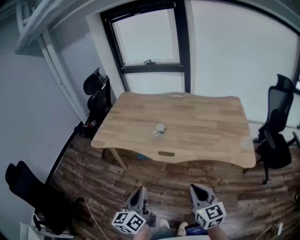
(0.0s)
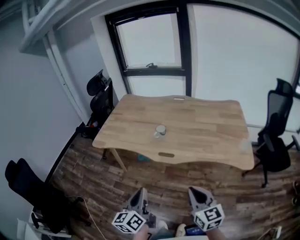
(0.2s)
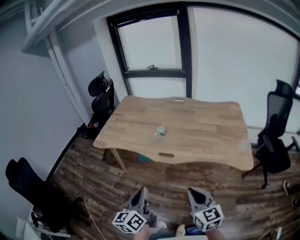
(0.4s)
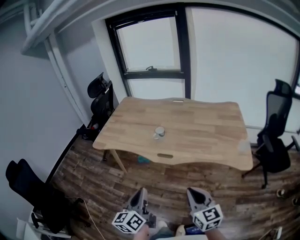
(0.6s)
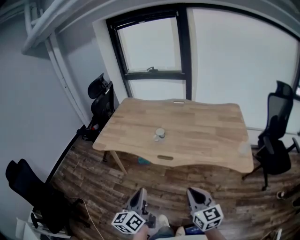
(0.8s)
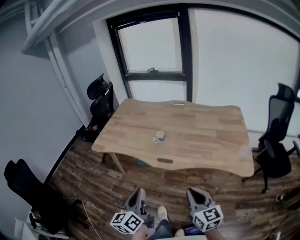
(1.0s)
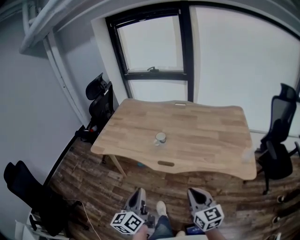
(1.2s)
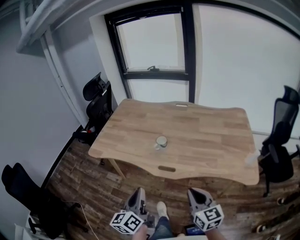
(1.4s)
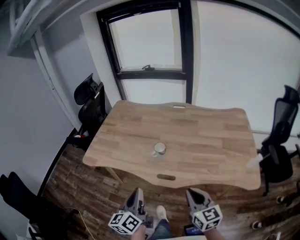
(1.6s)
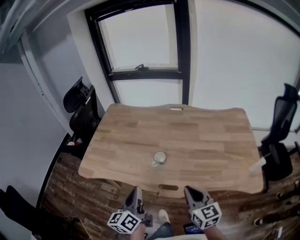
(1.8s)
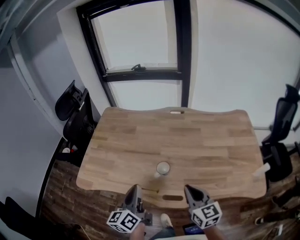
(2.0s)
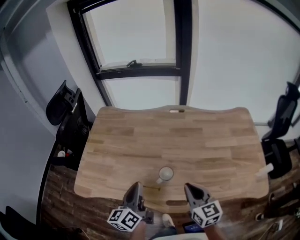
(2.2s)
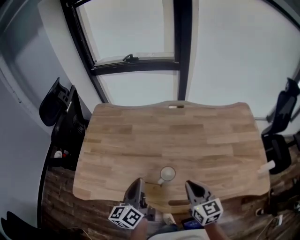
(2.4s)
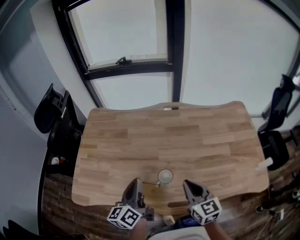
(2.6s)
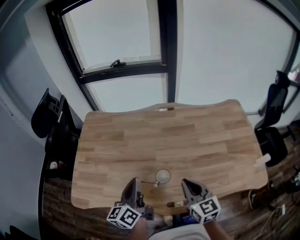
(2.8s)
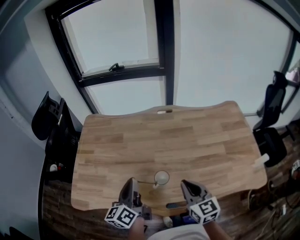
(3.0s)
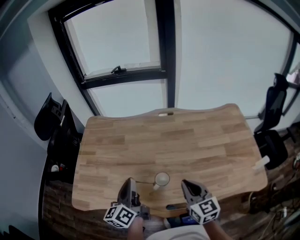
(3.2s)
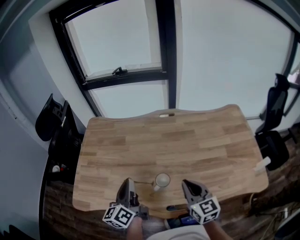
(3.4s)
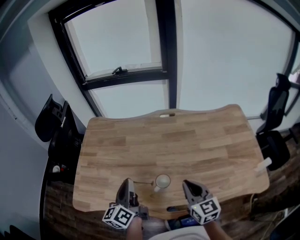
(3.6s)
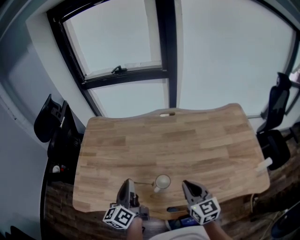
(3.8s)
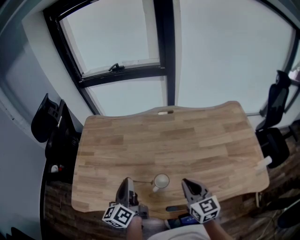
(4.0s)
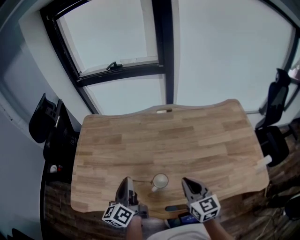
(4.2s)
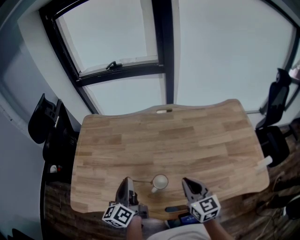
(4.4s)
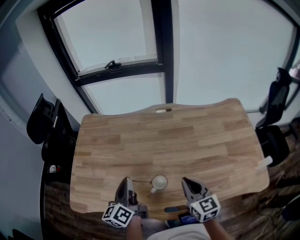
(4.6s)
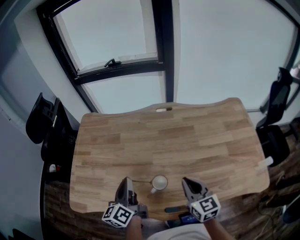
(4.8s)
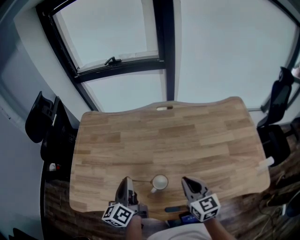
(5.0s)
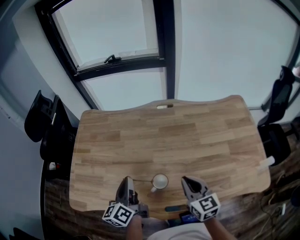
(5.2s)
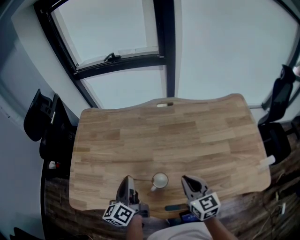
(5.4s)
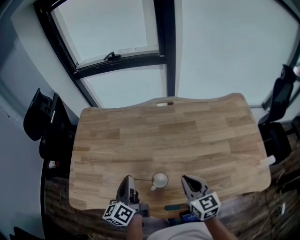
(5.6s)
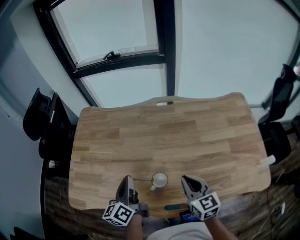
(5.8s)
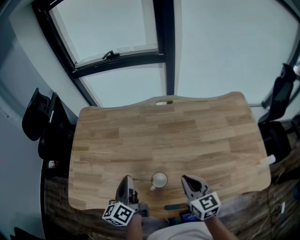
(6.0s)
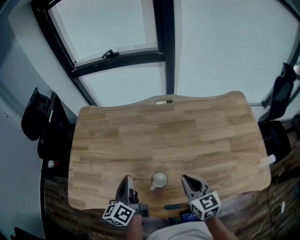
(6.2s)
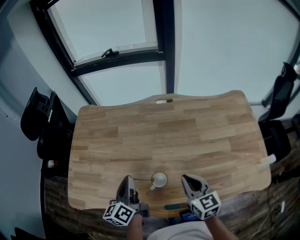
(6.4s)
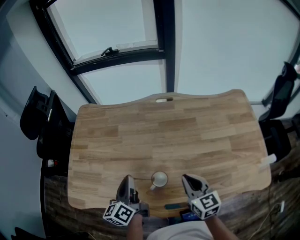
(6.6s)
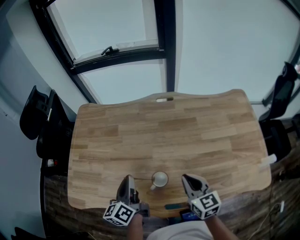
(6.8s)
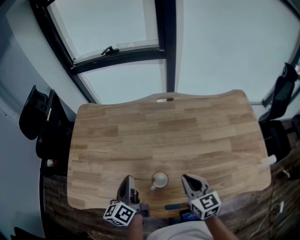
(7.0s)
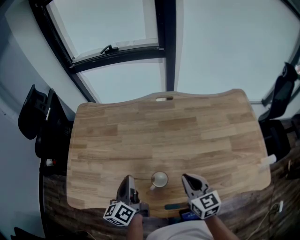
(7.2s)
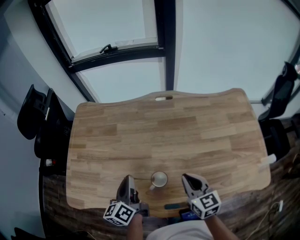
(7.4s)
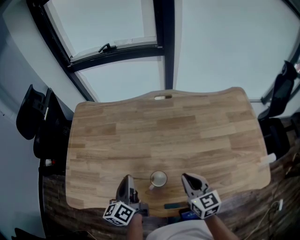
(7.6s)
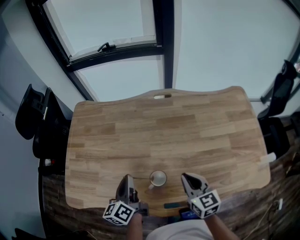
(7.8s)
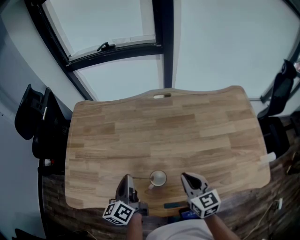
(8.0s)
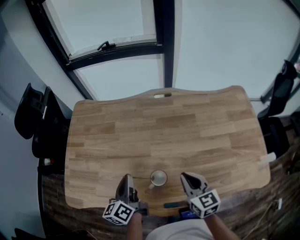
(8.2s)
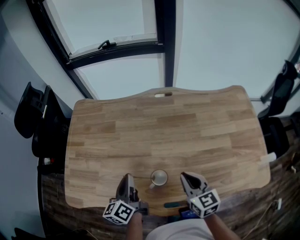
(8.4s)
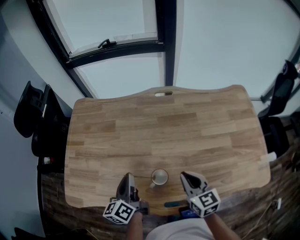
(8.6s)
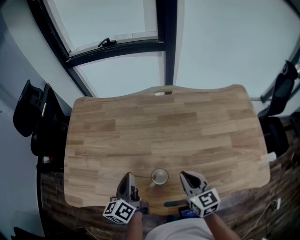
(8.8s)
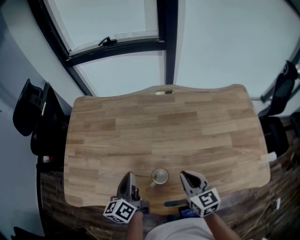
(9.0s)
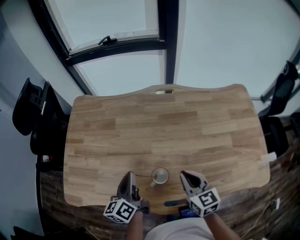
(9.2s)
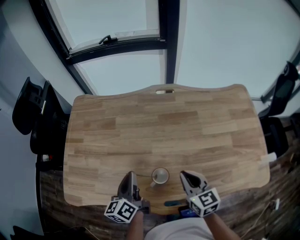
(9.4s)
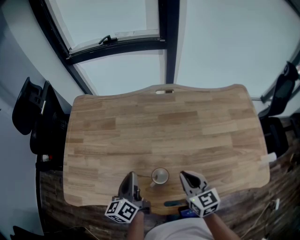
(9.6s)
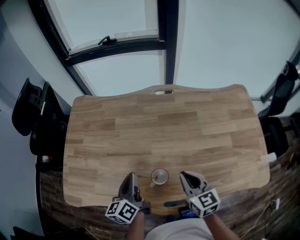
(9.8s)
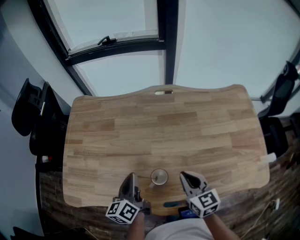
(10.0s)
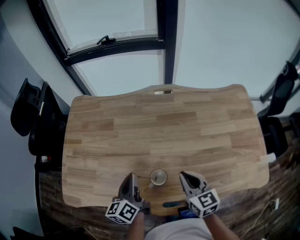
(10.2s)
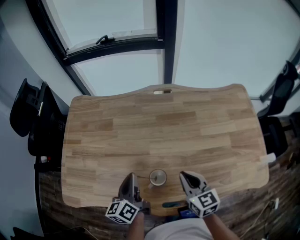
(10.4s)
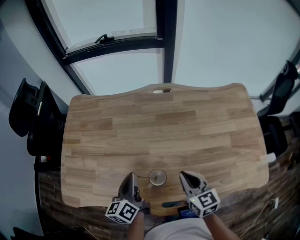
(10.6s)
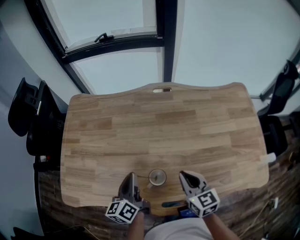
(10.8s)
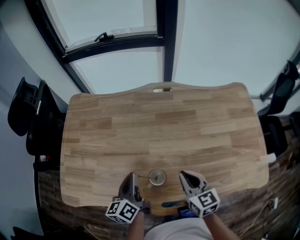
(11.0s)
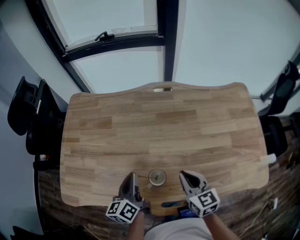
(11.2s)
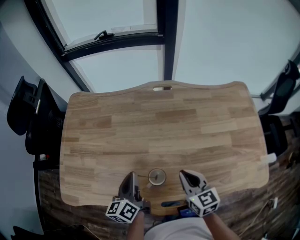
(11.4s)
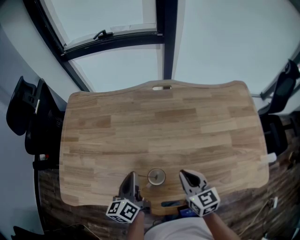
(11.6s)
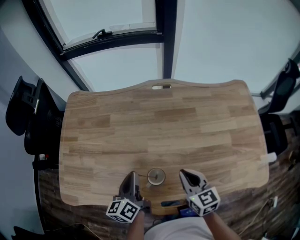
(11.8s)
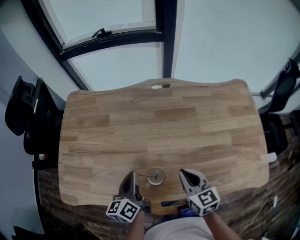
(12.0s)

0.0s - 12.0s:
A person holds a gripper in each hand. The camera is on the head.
0.0s - 1.6s: Both grippers move forward, some 15 cm.
1.6s - 3.0s: The grippers both shift forward by roughly 30 cm.
3.0s - 4.4s: The grippers stay close to where they were, moving slightly.
4.4s - 7.6s: The grippers stay close to where they were, moving slightly.
7.6s - 12.0s: The grippers move only a little.

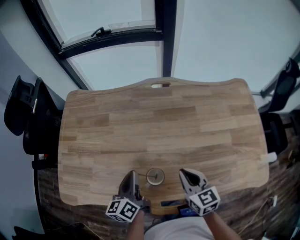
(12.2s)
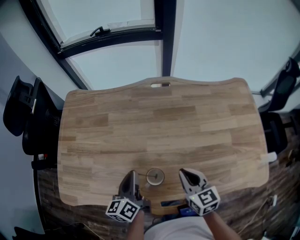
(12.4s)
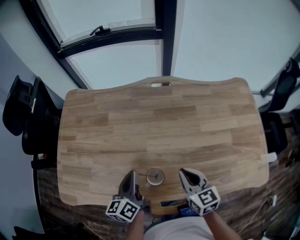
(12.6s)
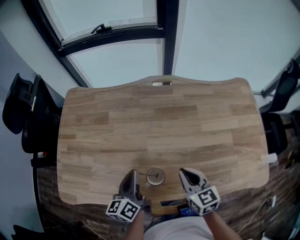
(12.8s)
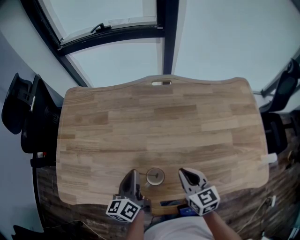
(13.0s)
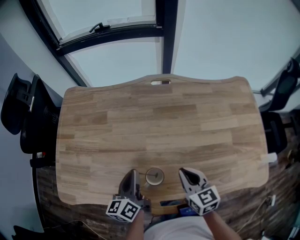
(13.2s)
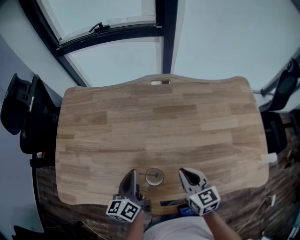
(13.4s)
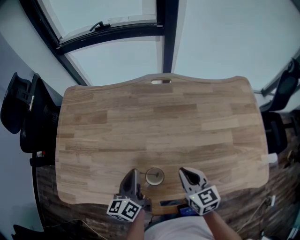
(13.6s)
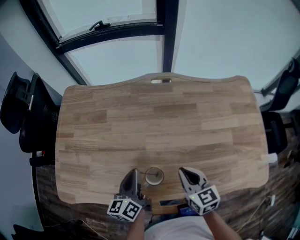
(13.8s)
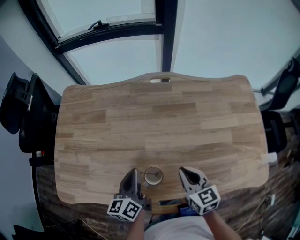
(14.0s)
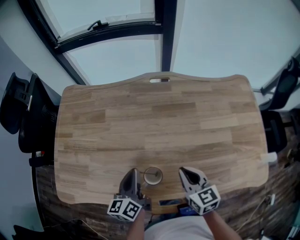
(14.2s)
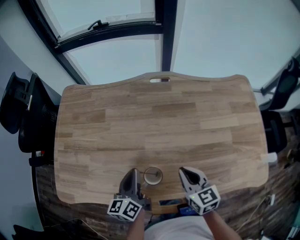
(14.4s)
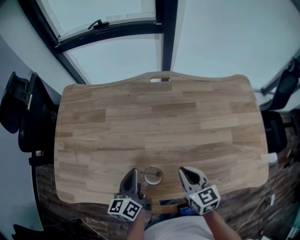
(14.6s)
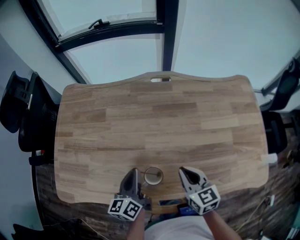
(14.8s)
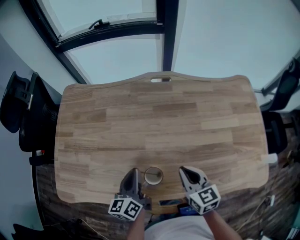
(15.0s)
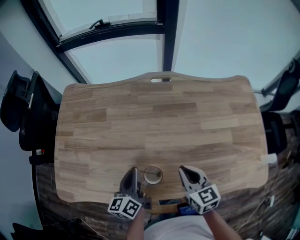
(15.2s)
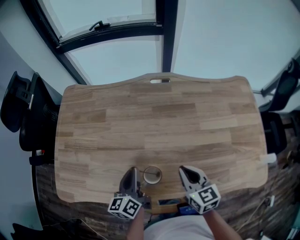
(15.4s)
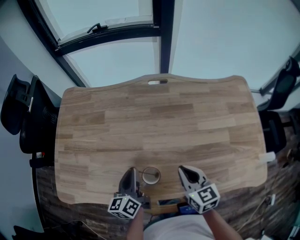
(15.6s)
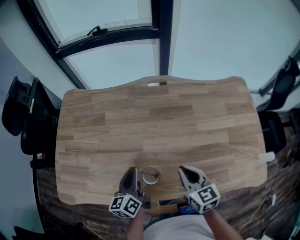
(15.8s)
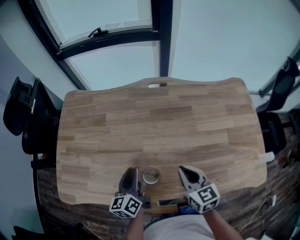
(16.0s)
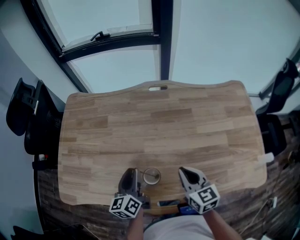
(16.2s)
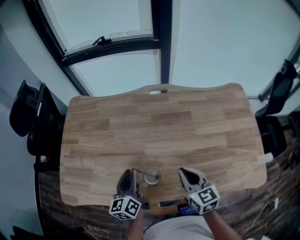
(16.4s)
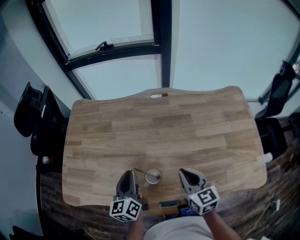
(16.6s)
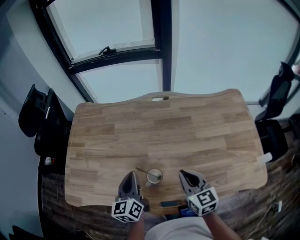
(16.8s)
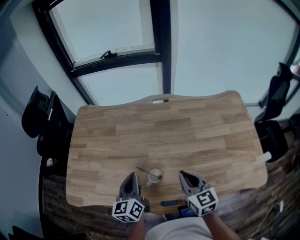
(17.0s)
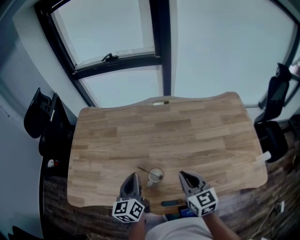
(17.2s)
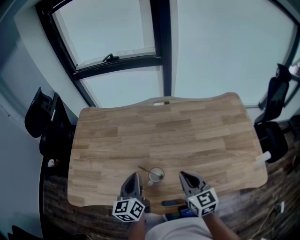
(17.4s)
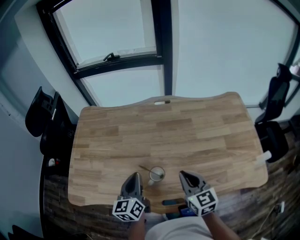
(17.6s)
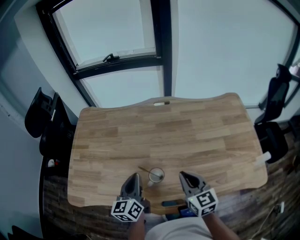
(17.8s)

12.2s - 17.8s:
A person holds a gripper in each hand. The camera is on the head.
12.2s - 13.6s: Neither gripper changes place.
13.6s - 15.0s: The two grippers keep their place.
15.0s - 16.4s: The left gripper opens.
16.4s - 17.8s: The right gripper moves roughly 5 cm; the left gripper shifts by approximately 5 cm, and closes up.

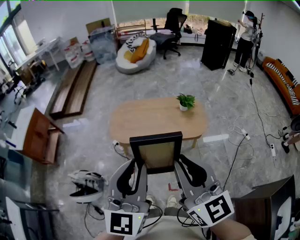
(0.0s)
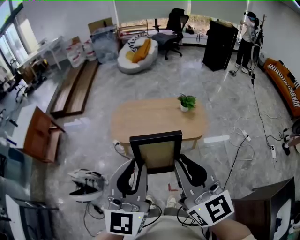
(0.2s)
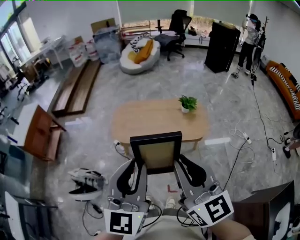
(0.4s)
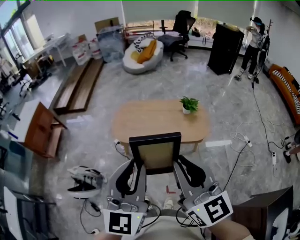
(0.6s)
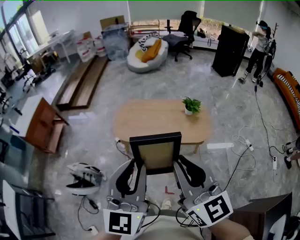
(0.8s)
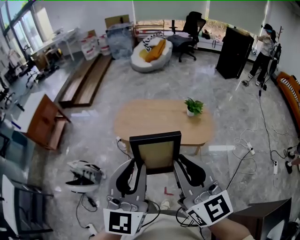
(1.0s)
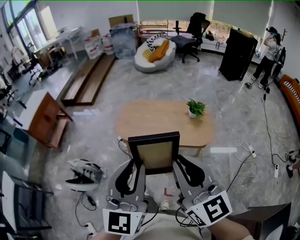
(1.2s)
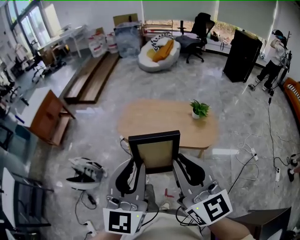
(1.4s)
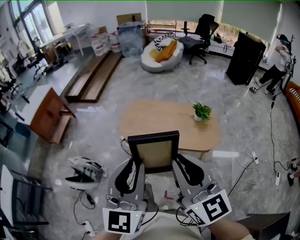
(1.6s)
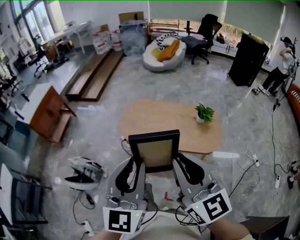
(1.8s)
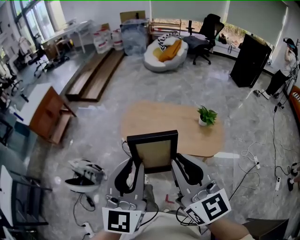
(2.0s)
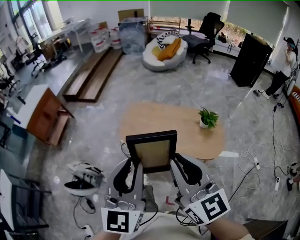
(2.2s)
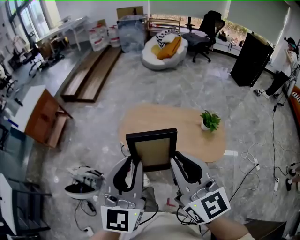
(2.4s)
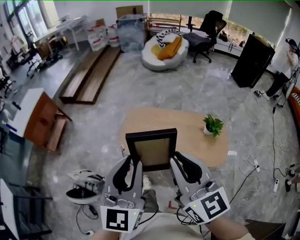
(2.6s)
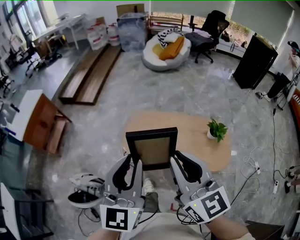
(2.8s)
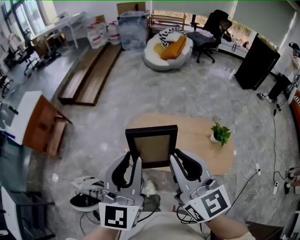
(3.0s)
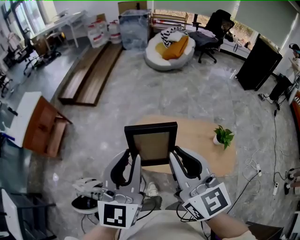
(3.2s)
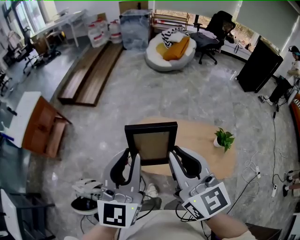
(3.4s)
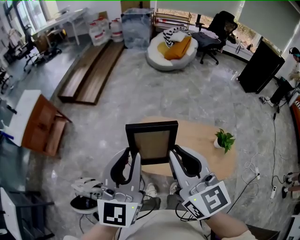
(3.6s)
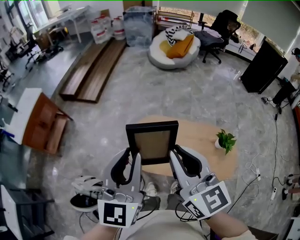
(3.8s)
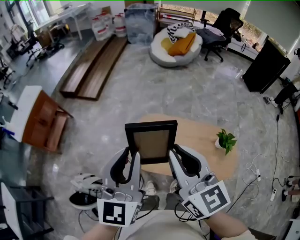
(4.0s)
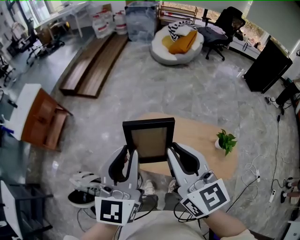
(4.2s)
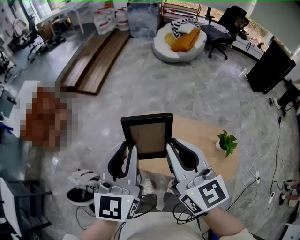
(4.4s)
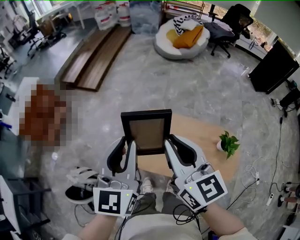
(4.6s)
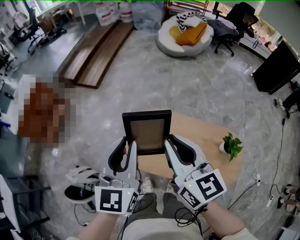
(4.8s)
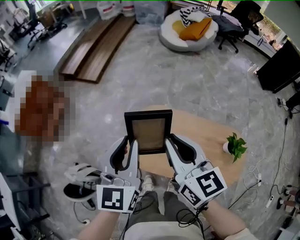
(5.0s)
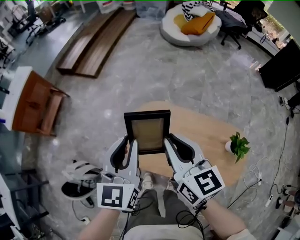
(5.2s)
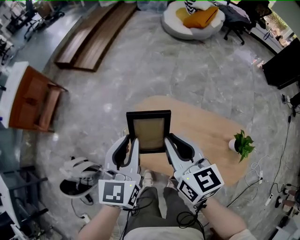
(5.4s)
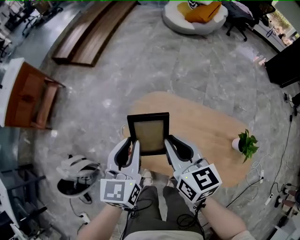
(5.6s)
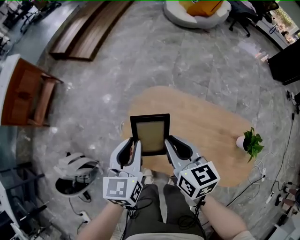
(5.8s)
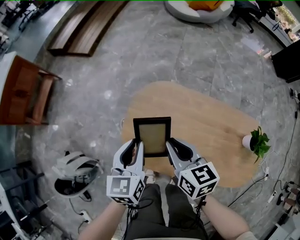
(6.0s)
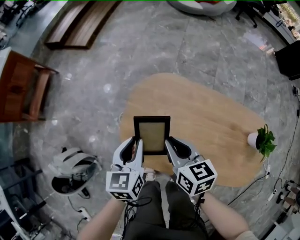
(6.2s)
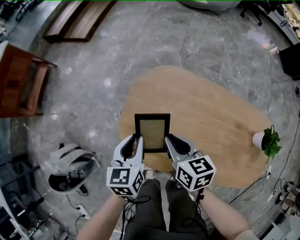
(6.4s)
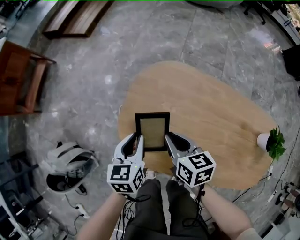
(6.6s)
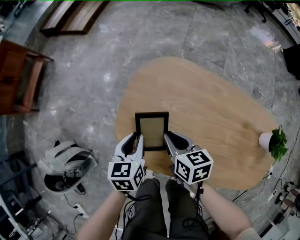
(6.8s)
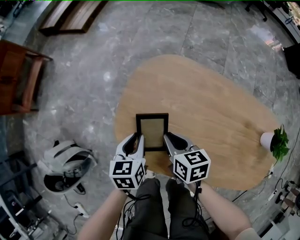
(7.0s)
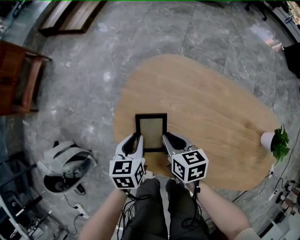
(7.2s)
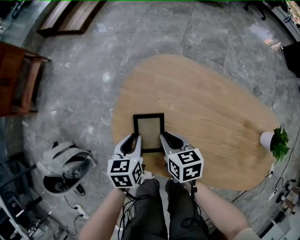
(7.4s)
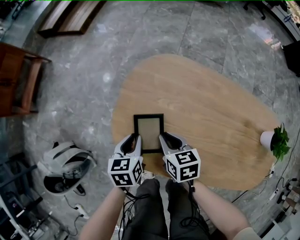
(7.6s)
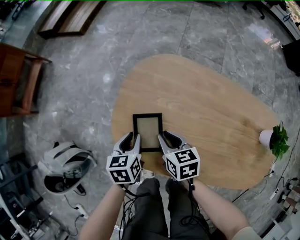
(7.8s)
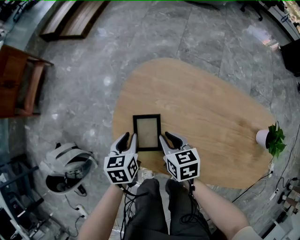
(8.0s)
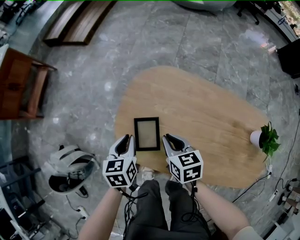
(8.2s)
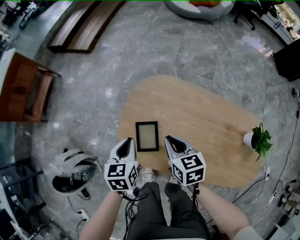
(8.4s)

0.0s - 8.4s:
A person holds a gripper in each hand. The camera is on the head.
0.0s - 1.4s: The grippers make only small movements.
1.4s - 2.8s: The grippers both shift forward by some 30 cm.
2.8s - 4.2s: The two grippers go some 15 cm forward.
4.2s - 5.6s: The right gripper moves downward and forward, approximately 30 cm, and changes its angle by some 20 degrees. The left gripper travels downward by approximately 30 cm, and changes its angle by approximately 20 degrees.
5.6s - 7.0s: Both grippers travel together downward, some 35 cm. The left gripper changes its angle by some 30 degrees, while the right gripper swivels approximately 30 degrees.
7.0s - 8.4s: The grippers both shift upward by some 10 cm.
